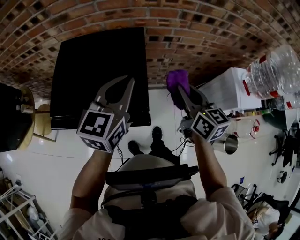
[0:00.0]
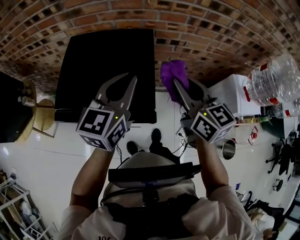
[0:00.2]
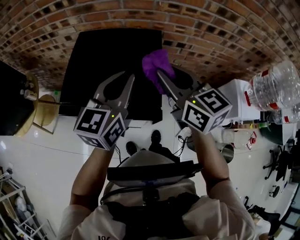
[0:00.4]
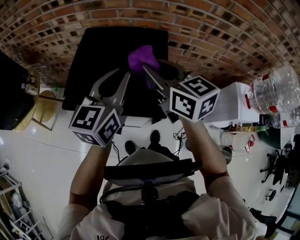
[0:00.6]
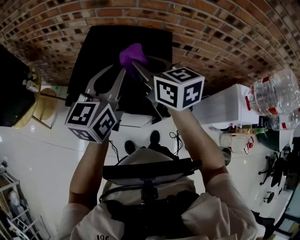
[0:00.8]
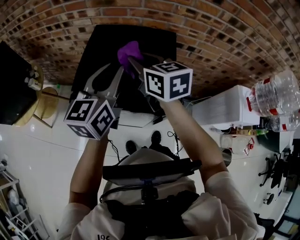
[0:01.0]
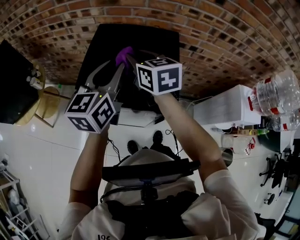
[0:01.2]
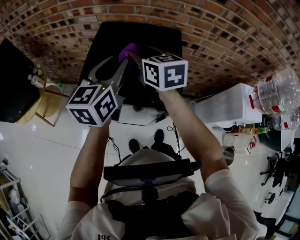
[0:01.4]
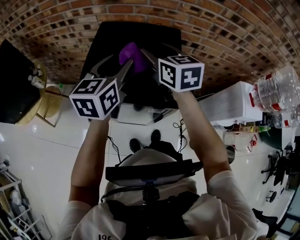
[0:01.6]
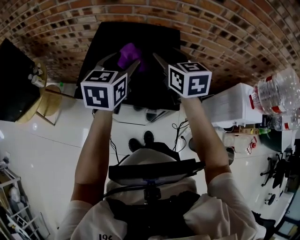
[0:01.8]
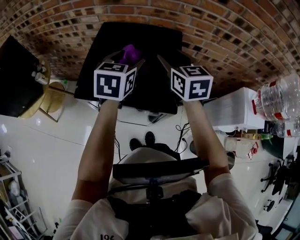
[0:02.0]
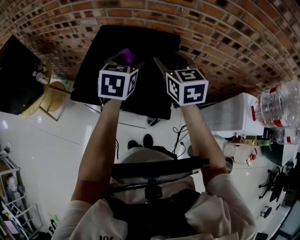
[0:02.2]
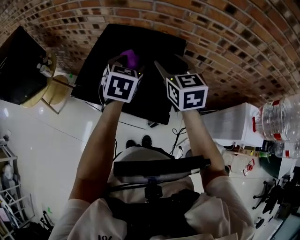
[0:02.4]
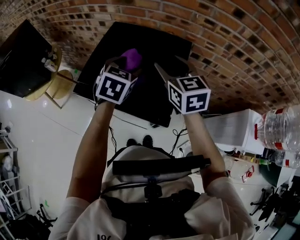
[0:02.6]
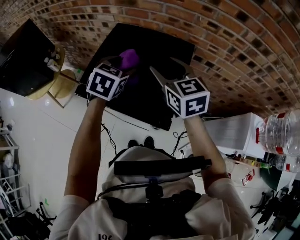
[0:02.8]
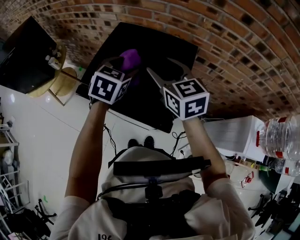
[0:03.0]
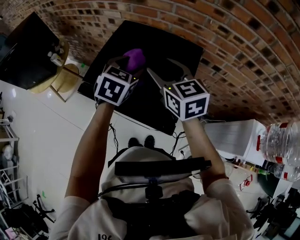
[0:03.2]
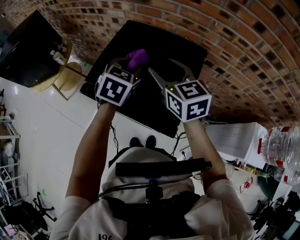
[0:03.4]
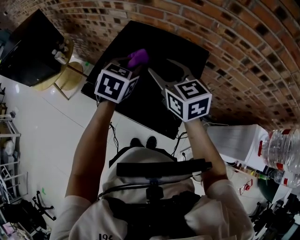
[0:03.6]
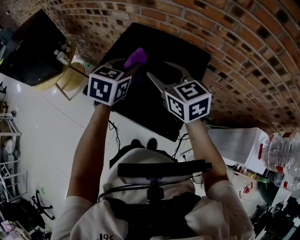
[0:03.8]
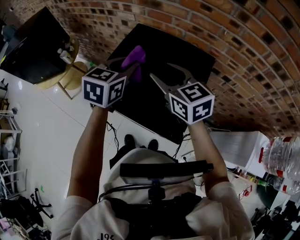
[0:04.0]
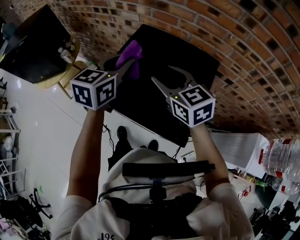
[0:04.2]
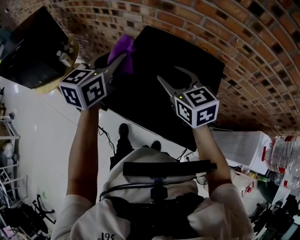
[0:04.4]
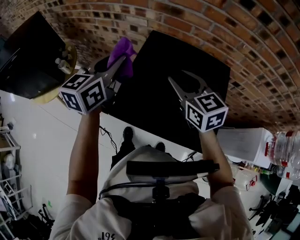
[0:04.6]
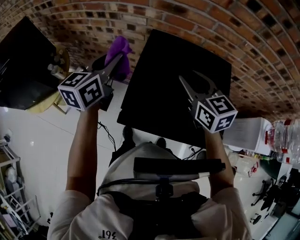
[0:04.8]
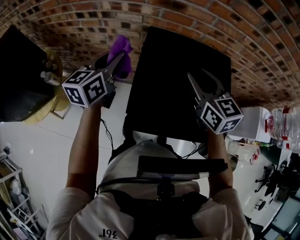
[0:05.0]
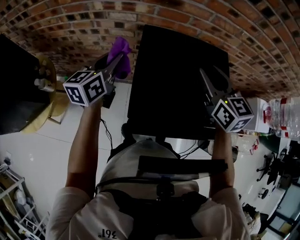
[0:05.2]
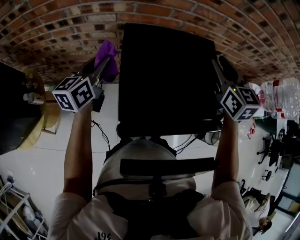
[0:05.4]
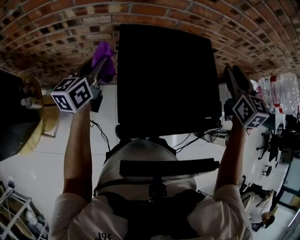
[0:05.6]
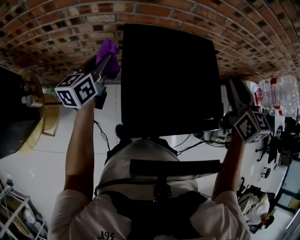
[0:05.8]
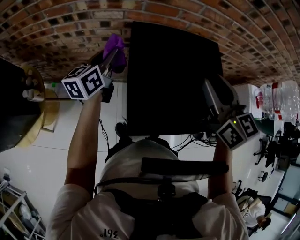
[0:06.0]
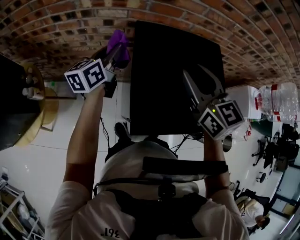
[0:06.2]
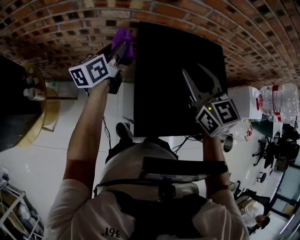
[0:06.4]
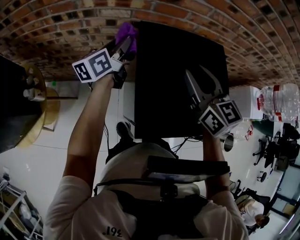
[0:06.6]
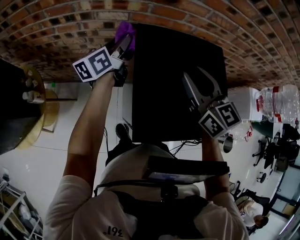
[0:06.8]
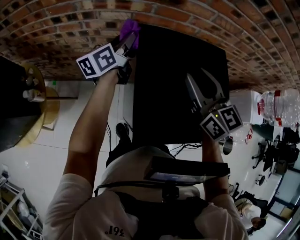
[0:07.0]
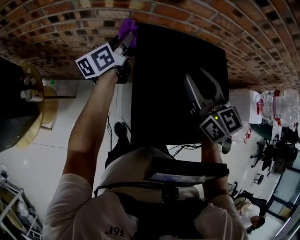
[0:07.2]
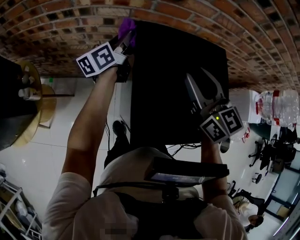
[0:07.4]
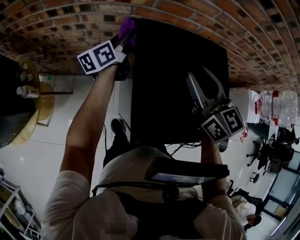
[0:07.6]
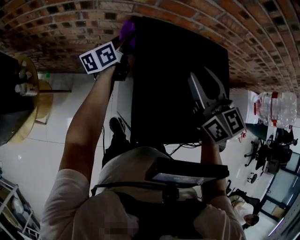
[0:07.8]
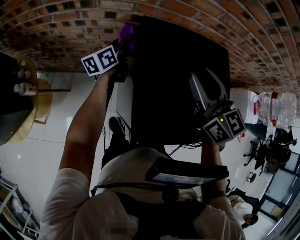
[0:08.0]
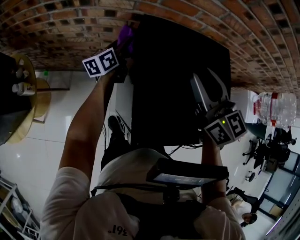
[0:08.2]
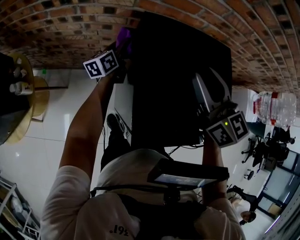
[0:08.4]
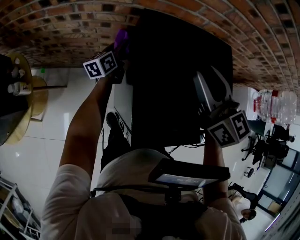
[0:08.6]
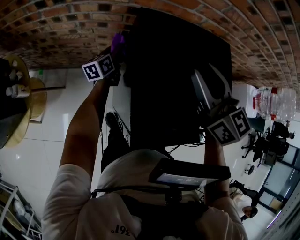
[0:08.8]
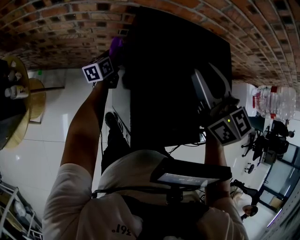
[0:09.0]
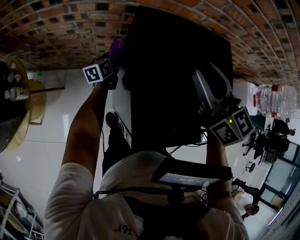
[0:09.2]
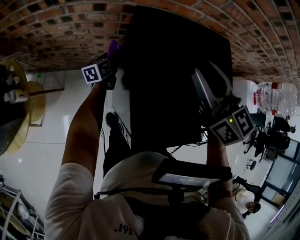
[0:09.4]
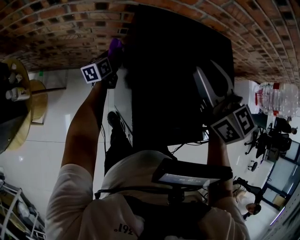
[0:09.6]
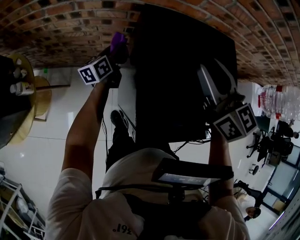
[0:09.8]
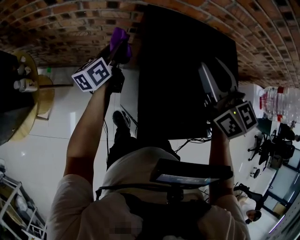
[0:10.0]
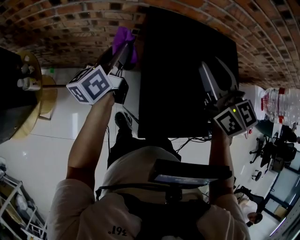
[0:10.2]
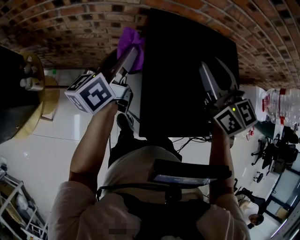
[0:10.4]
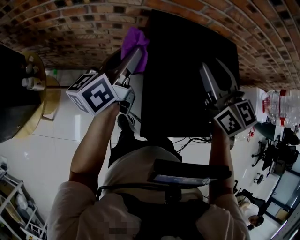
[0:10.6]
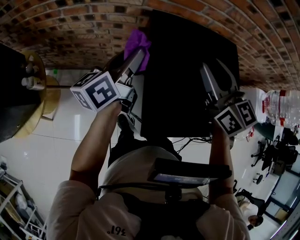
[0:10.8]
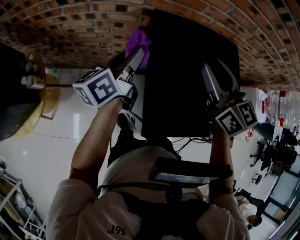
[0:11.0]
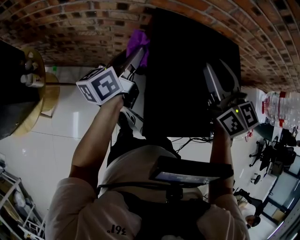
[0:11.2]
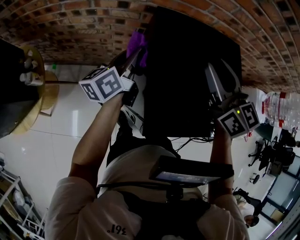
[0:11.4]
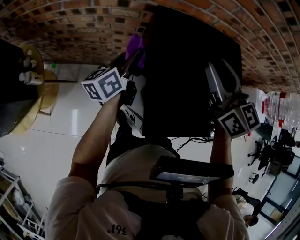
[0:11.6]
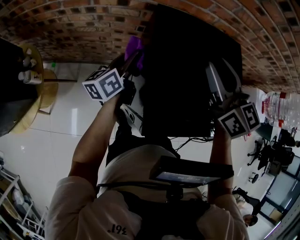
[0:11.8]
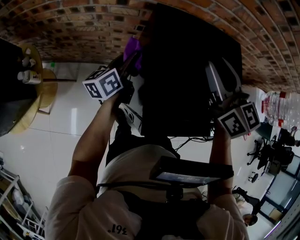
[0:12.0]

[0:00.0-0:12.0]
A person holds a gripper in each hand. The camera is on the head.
0:00.0 to 0:01.6: The right gripper is displaced to the left and forward by some 25 cm, swivels some 20 degrees, and opens its fingers, while the left gripper heads to the left, covering about 15 cm, and opens its fingers.
0:01.6 to 0:03.0: The left gripper goes about 10 cm downward and forward, and turns by about 30 degrees.
0:03.0 to 0:04.4: The left gripper moves to the left and upward, some 15 cm, turns by approximately 30 degrees, and closes its fingers. Meanwhile the right gripper moves to the left, some 10 cm.
0:04.4 to 0:06.0: The right gripper travels upward by about 5 cm, and turns by about 40 degrees. Meanwhile the left gripper ends up approximately 20 cm from where it was, and turns by approximately 30 degrees.
0:06.0 to 0:07.6: The right gripper is displaced to the left by about 5 cm. The left gripper heads forward, covering some 10 cm.
0:07.6 to 0:09.0: The left gripper travels downward by roughly 20 cm.
0:09.0 to 0:10.4: The left gripper travels upward and backward by some 30 cm, and rotates some 20 degrees.
0:10.4 to 0:12.0: The left gripper is displaced downward by about 15 cm.

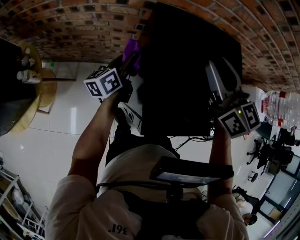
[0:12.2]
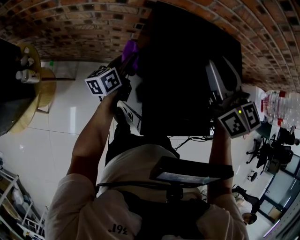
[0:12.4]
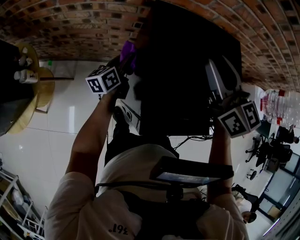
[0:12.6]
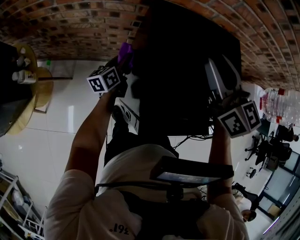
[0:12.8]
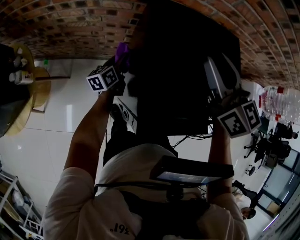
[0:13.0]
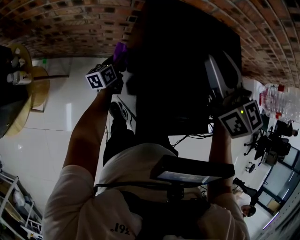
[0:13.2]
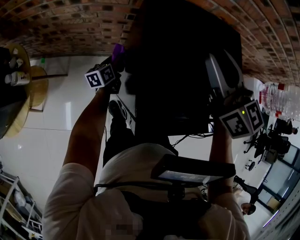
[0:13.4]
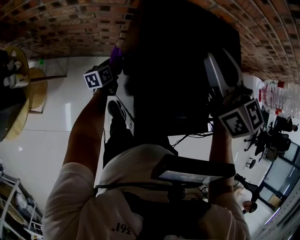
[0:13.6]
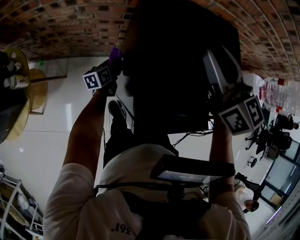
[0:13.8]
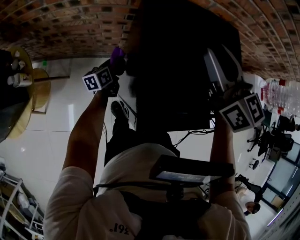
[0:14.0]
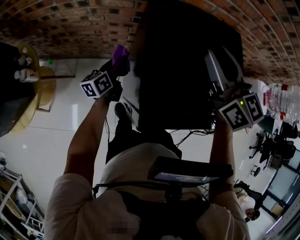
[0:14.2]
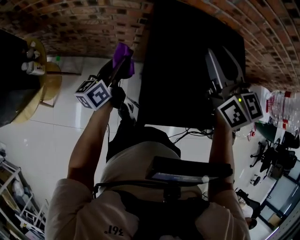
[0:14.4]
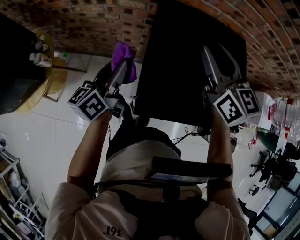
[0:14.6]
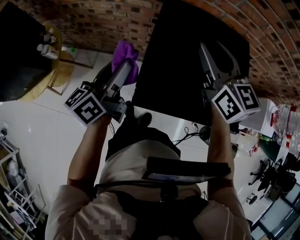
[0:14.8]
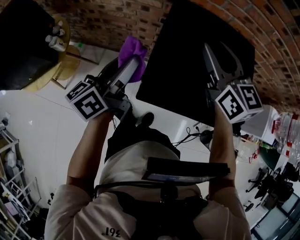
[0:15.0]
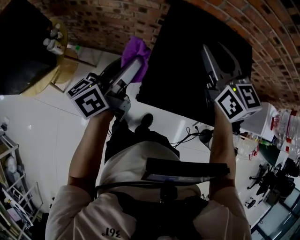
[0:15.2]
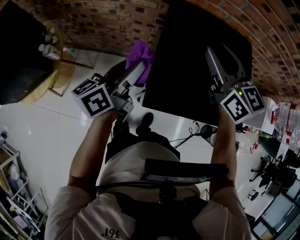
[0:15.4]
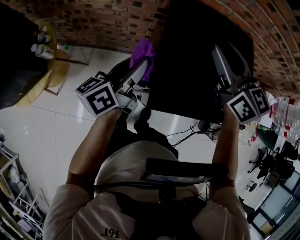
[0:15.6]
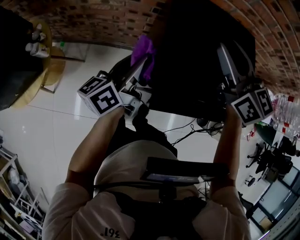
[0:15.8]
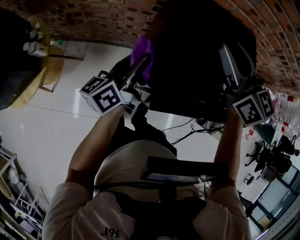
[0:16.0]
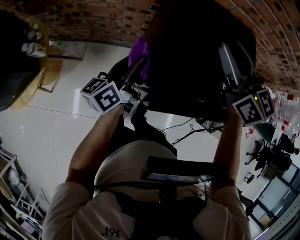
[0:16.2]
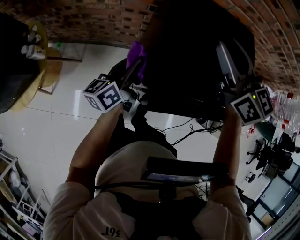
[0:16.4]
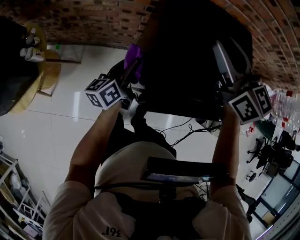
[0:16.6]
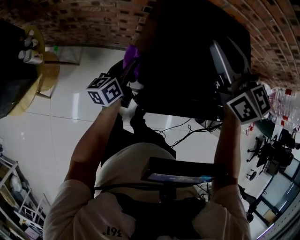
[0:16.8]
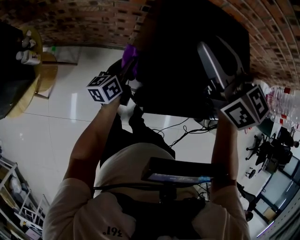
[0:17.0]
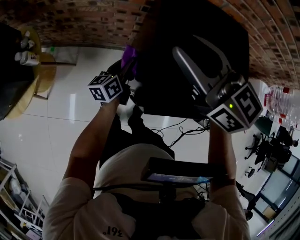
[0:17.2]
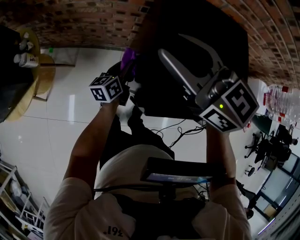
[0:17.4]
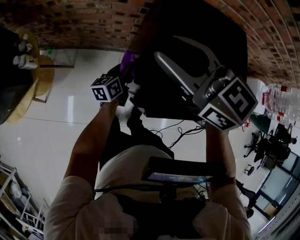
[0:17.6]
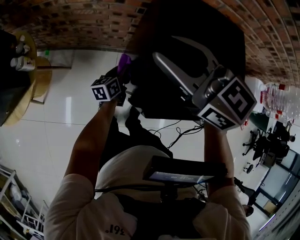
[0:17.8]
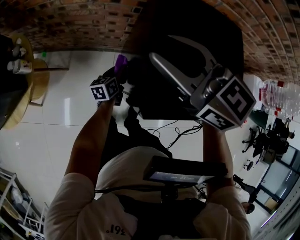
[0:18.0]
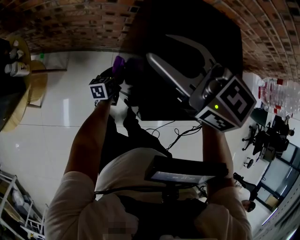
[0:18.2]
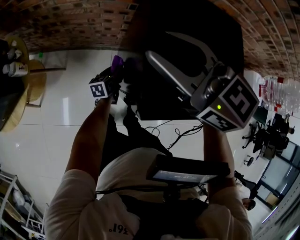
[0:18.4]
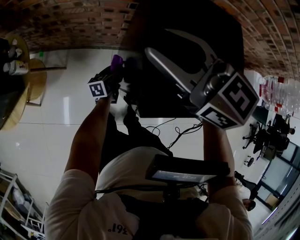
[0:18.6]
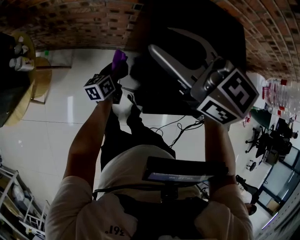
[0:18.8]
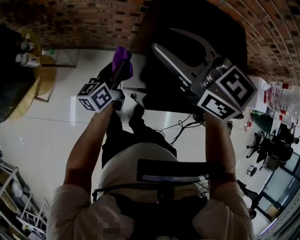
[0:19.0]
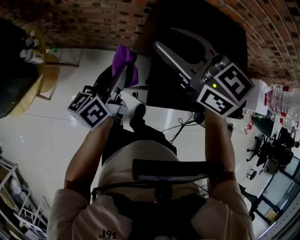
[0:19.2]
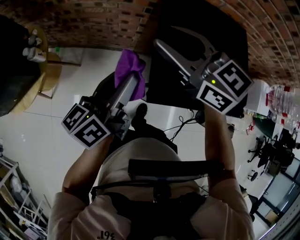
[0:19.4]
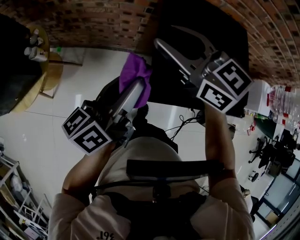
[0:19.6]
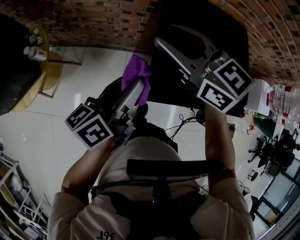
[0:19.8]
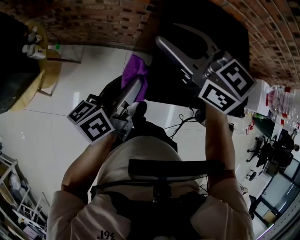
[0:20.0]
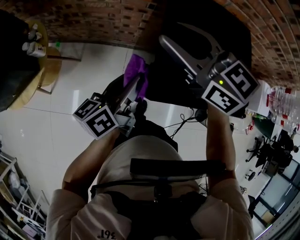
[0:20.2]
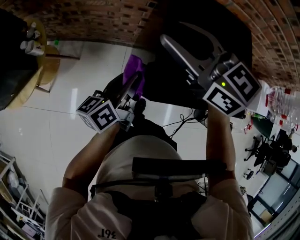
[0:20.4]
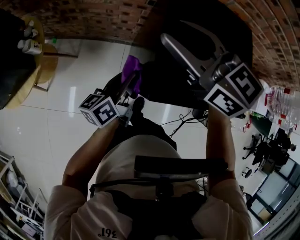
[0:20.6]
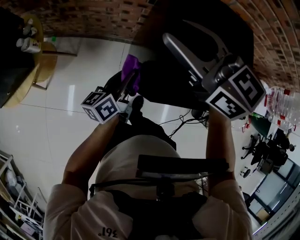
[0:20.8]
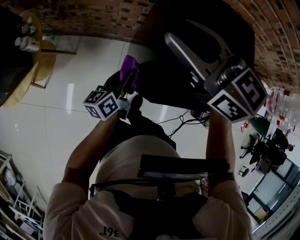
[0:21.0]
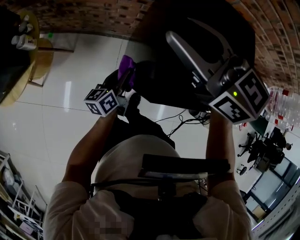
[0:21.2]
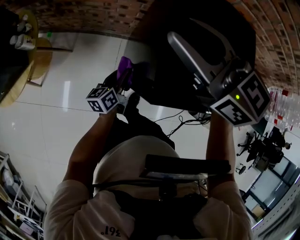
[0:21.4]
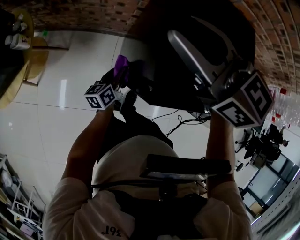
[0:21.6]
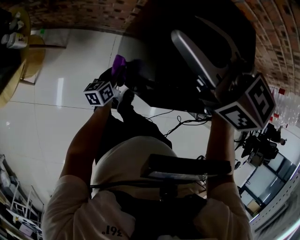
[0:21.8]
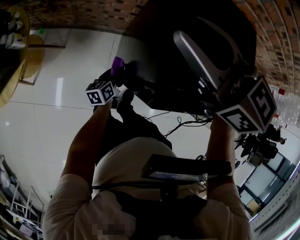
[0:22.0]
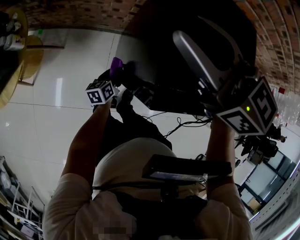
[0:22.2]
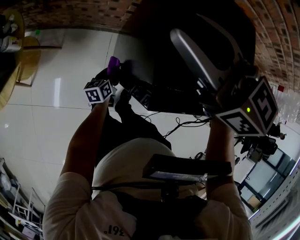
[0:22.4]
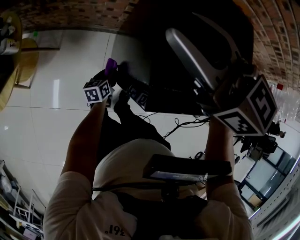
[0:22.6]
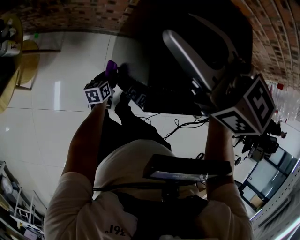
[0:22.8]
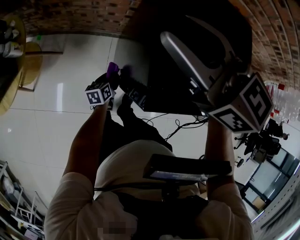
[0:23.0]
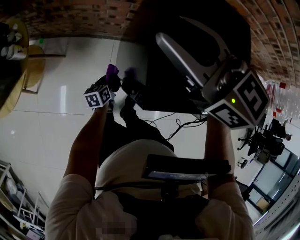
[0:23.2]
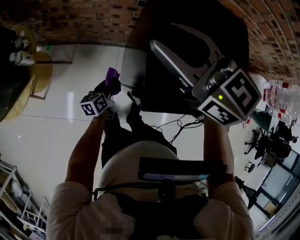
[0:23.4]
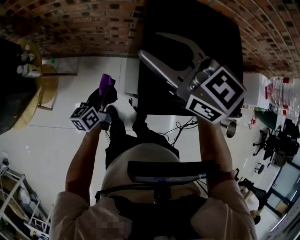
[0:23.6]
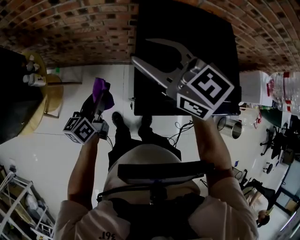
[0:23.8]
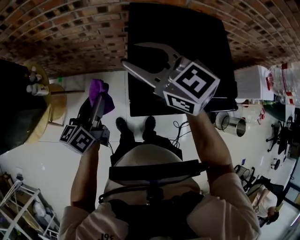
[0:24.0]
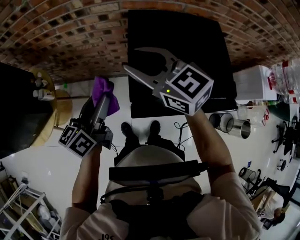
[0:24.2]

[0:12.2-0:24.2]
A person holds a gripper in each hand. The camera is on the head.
0:12.2 to 0:13.8: The left gripper travels downward by about 20 cm, and turns by roughly 20 degrees.
0:13.8 to 0:15.2: The left gripper travels upward by some 40 cm, and points its fingers about 30 degrees further upward.
0:15.2 to 0:16.6: The left gripper is displaced downward by roughly 15 cm.
0:16.6 to 0:18.2: The left gripper heads downward, covering approximately 20 cm, and changes its angle by approximately 20 degrees. Meanwhile the right gripper moves to the left, roughly 15 cm, and changes its angle by approximately 20 degrees.
0:18.2 to 0:19.8: The left gripper moves upward, about 35 cm, and changes its angle by roughly 30 degrees.
0:19.8 to 0:21.2: The left gripper travels downward by some 25 cm.
0:21.2 to 0:22.6: The left gripper travels downward by roughly 20 cm, and rotates approximately 20 degrees.
0:22.6 to 0:24.2: The left gripper goes roughly 40 cm upward, and tilts its fingers about 30 degrees upward.
